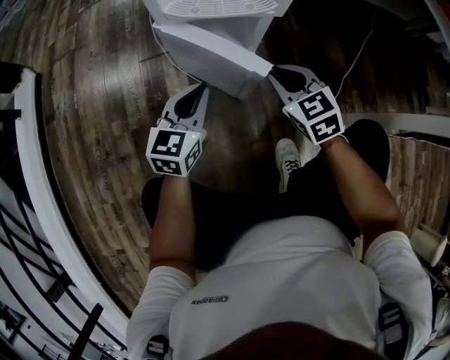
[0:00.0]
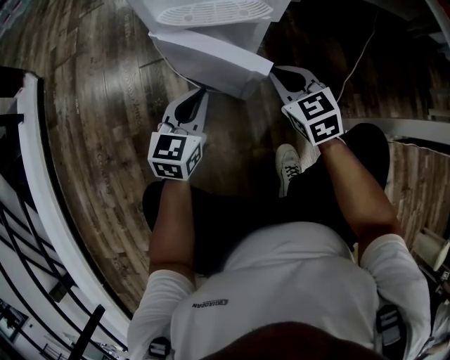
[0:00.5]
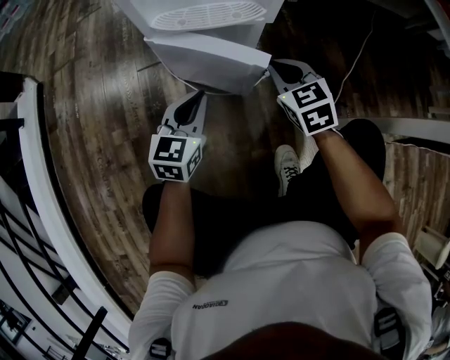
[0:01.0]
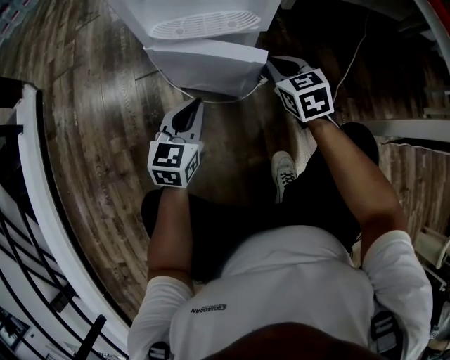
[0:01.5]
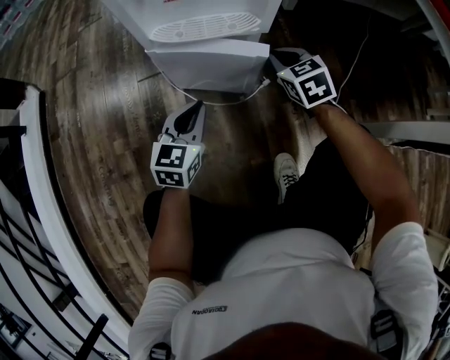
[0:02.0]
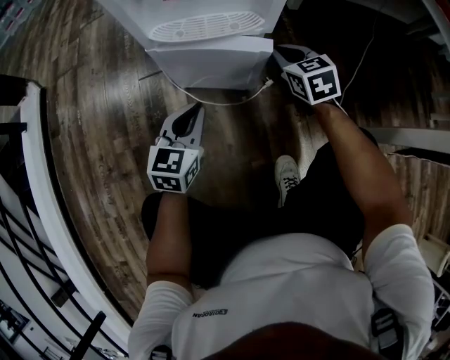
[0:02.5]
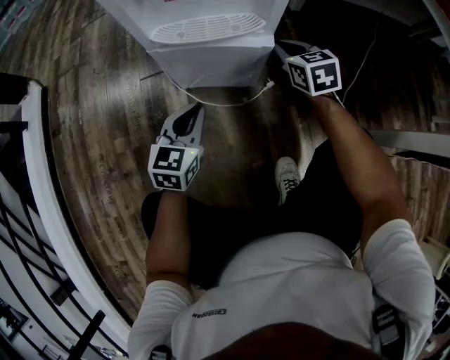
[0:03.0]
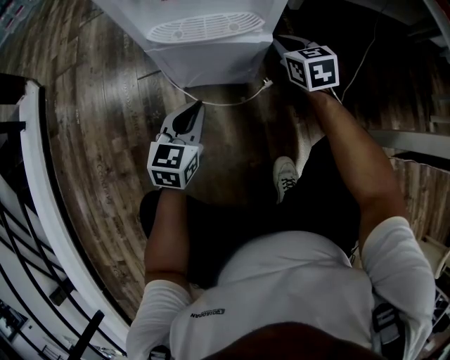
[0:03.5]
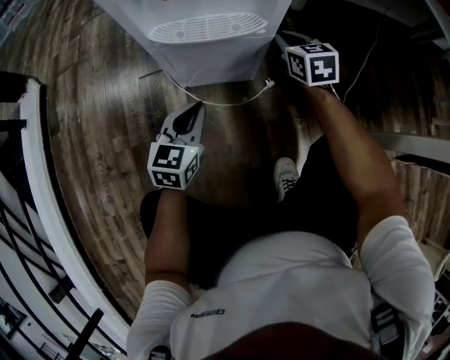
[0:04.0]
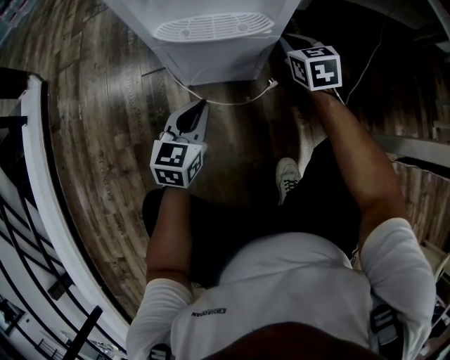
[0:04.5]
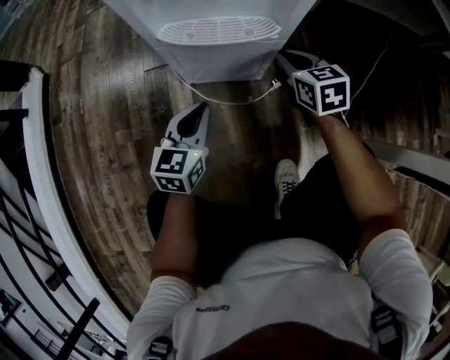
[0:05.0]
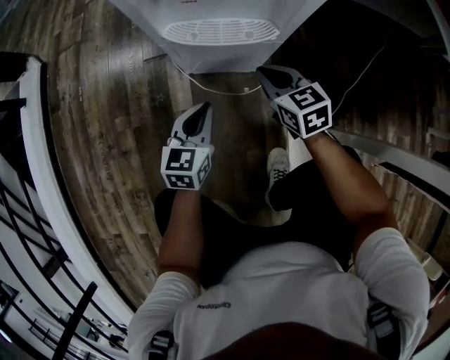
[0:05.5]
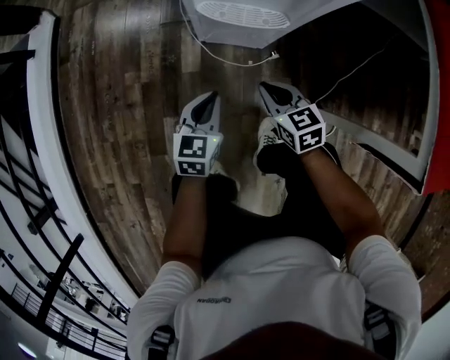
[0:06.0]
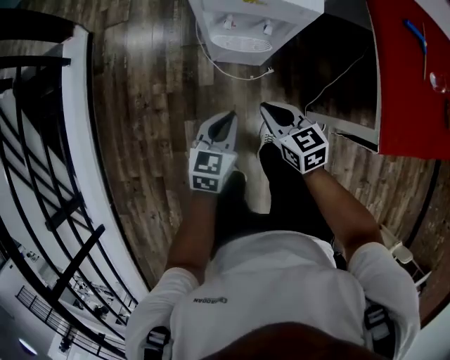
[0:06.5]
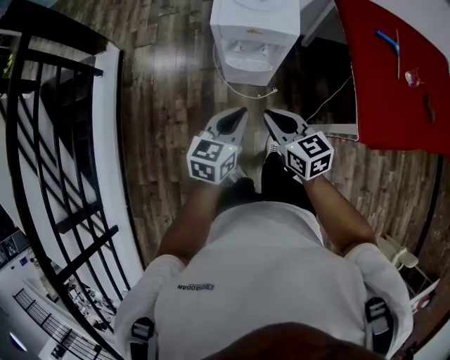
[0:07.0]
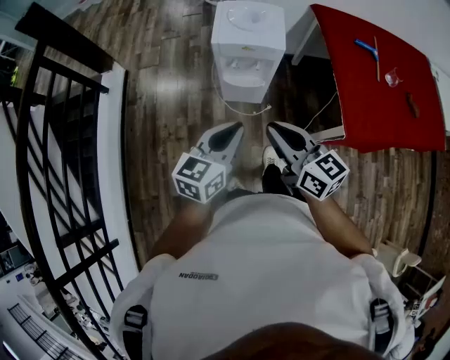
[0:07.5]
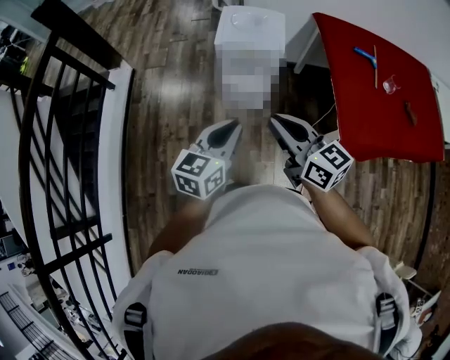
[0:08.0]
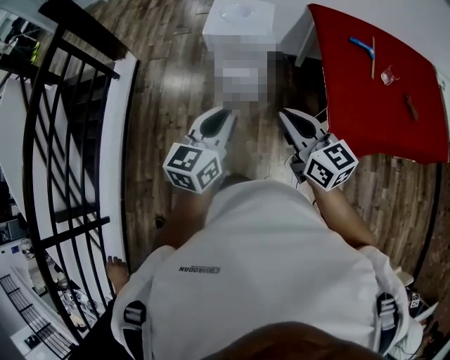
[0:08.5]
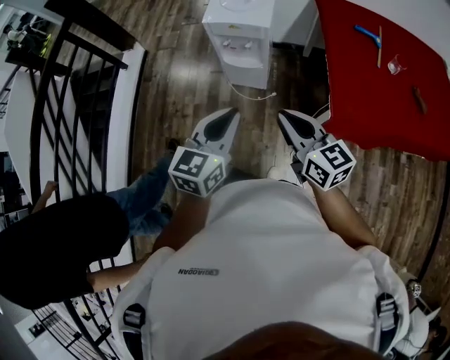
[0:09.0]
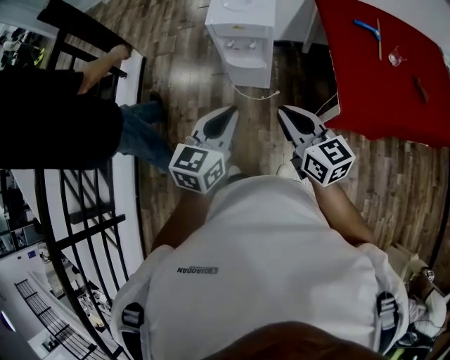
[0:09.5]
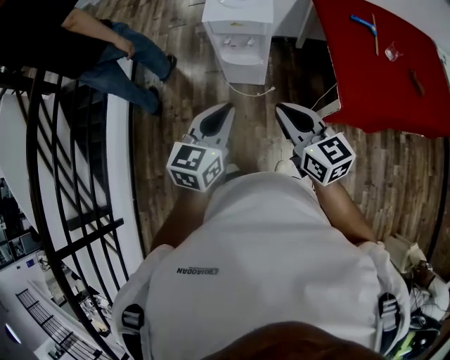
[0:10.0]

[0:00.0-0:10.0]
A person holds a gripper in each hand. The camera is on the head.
0:00.0 to 0:02.0: The right gripper moves forward, some 10 cm.
0:02.0 to 0:04.0: The right gripper shifts approximately 5 cm forward.
0:04.0 to 0:06.0: The left gripper is displaced upward and backward by roughly 15 cm. Meanwhile the right gripper shifts roughly 25 cm backward, to the left and upward, and turns by some 30 degrees.
0:06.0 to 0:08.0: The grippers both shift upward by approximately 60 cm. The right gripper points its fingers roughly 30 degrees further upward.
0:08.0 to 0:10.0: The right gripper goes roughly 10 cm backward and to the right. Meanwhile the left gripper heads backward, covering some 5 cm, and travels to the right and back again, approximately 10 cm each way.

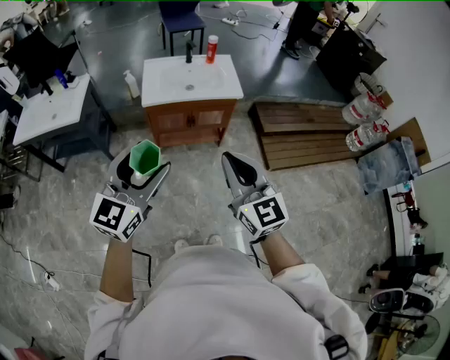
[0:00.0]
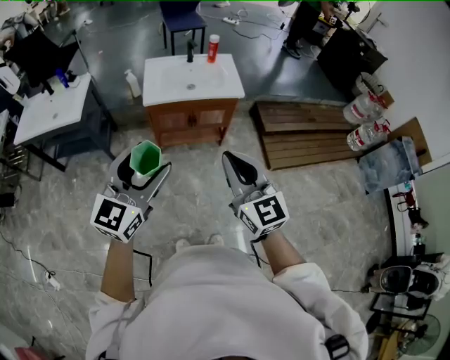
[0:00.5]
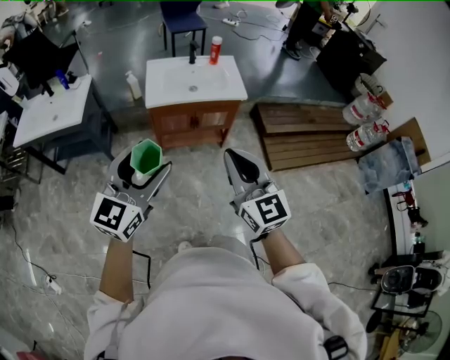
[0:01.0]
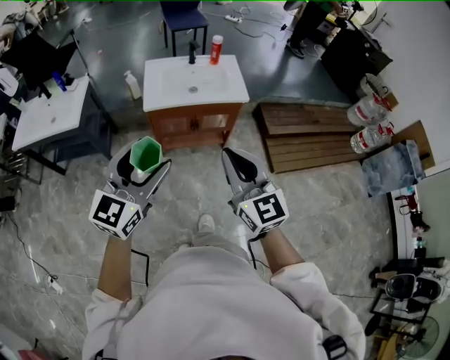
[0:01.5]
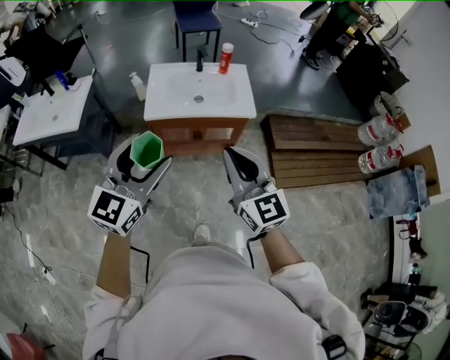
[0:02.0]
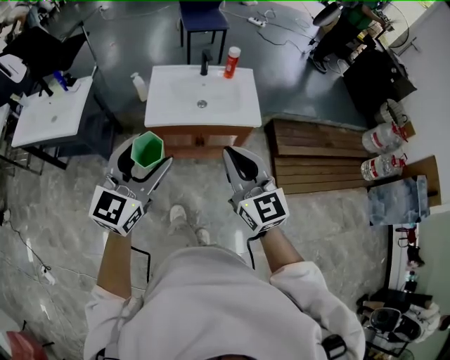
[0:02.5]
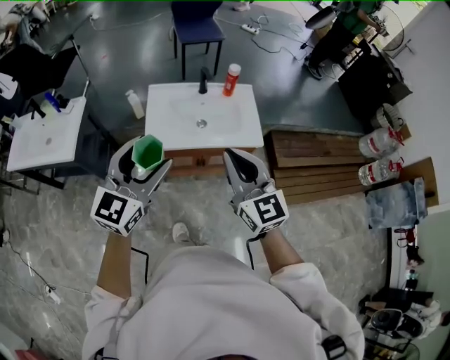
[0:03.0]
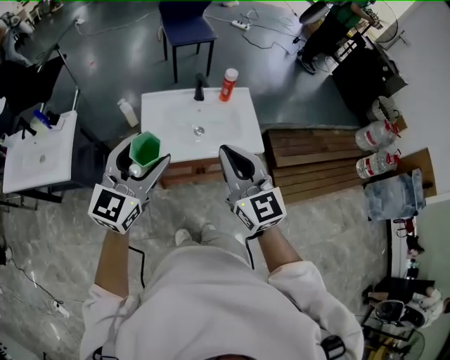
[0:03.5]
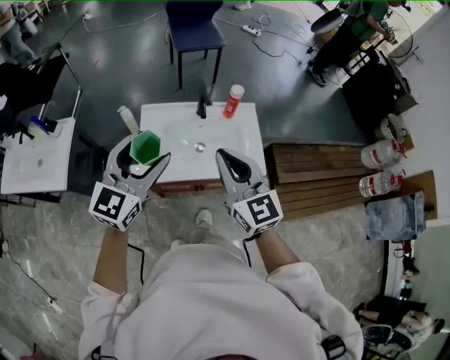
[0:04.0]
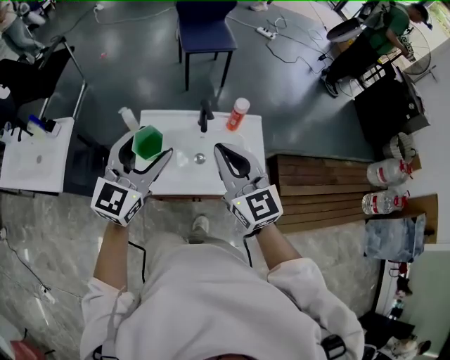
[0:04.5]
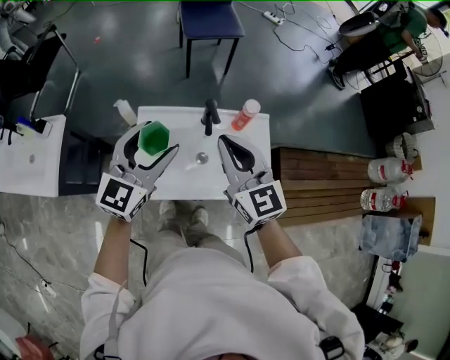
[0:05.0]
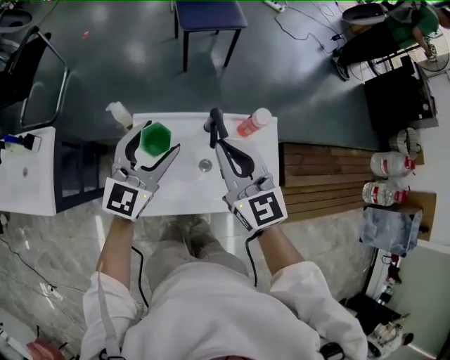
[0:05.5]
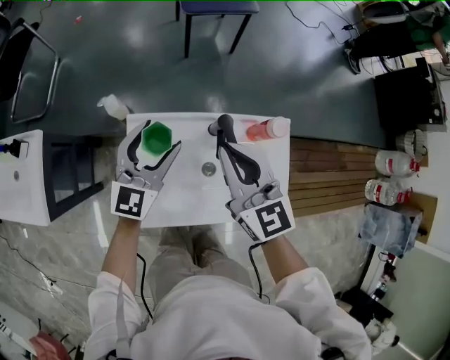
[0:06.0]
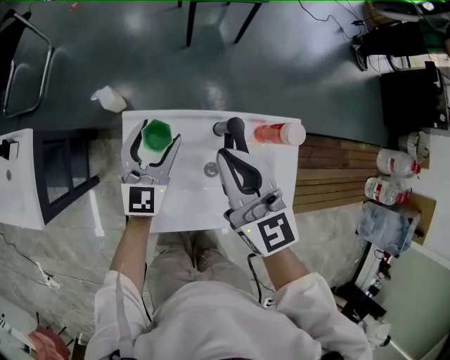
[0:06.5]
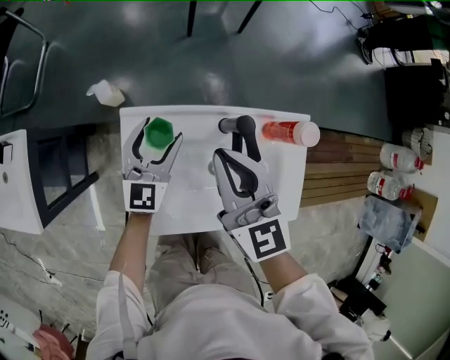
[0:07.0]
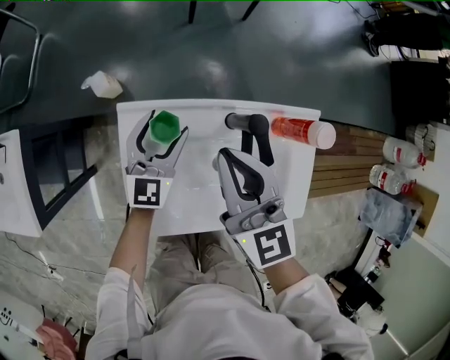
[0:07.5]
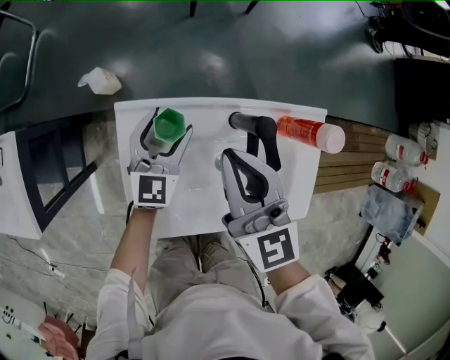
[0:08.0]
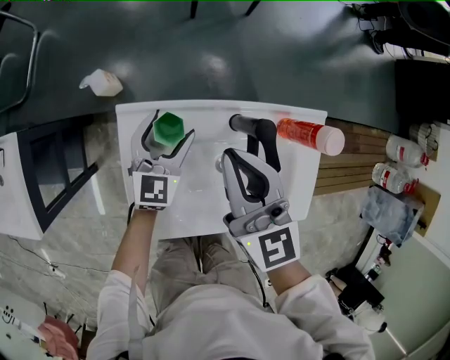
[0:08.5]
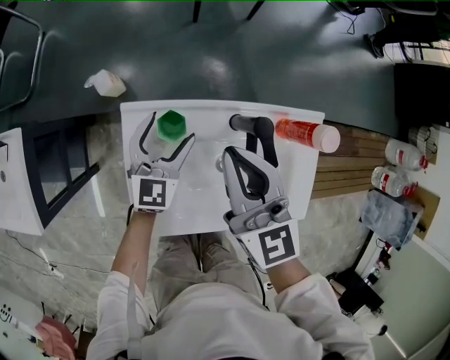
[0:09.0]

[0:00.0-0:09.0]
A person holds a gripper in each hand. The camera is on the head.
0:00.0 to 0:02.0: Both grippers travel together forward, roughly 20 cm.
0:02.0 to 0:04.5: The pair of grippers is taken forward, some 50 cm.
0:04.5 to 0:07.0: The right gripper heads forward and downward, covering about 30 cm; the left gripper travels downward and forward by approximately 40 cm.

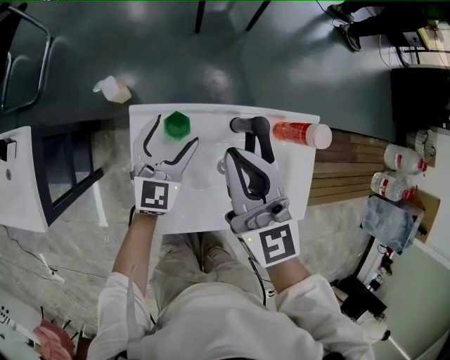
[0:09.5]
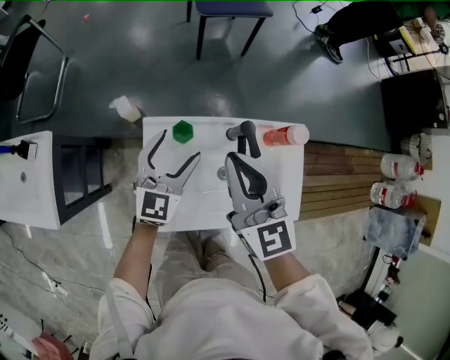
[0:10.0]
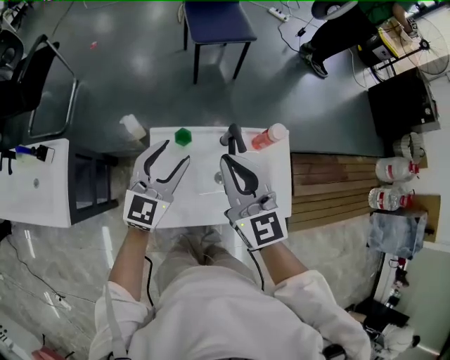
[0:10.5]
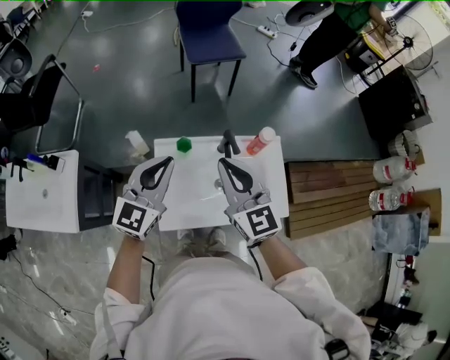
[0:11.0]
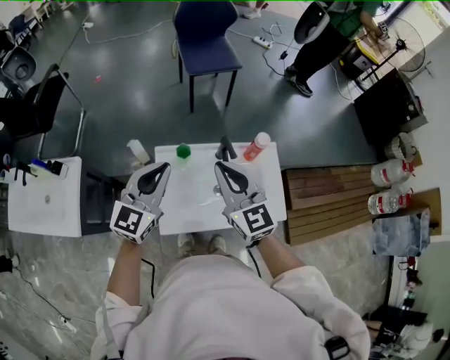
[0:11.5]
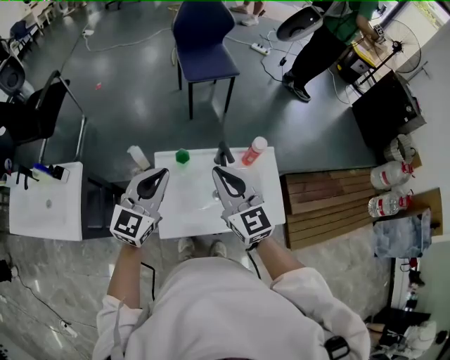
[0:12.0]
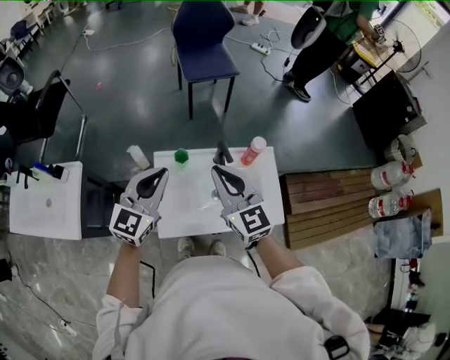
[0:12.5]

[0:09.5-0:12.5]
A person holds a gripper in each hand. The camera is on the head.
0:09.5 to 0:11.0: The right gripper goes about 20 cm upward and backward. Meanwhile the left gripper is displaced upward and backward by approximately 30 cm, and closes up.
0:11.0 to 0:12.5: There are only small adjustments of the grippers.

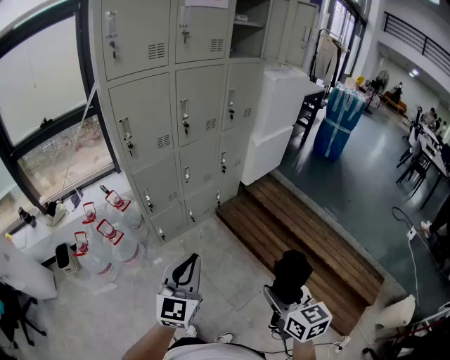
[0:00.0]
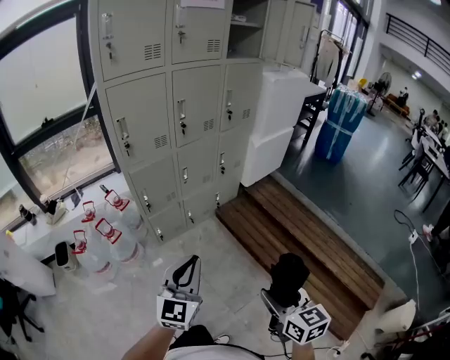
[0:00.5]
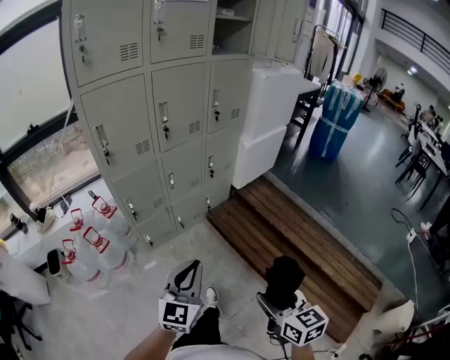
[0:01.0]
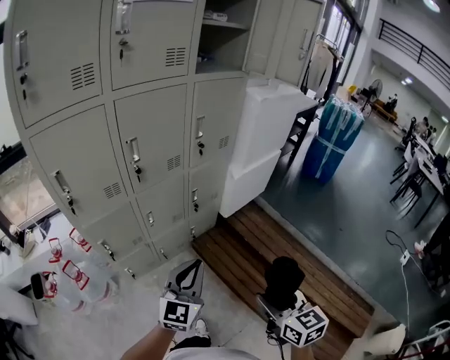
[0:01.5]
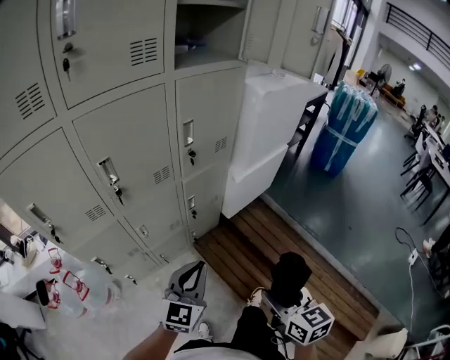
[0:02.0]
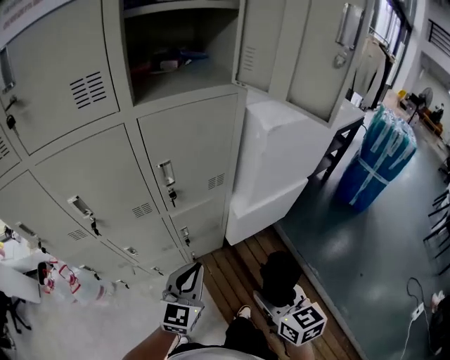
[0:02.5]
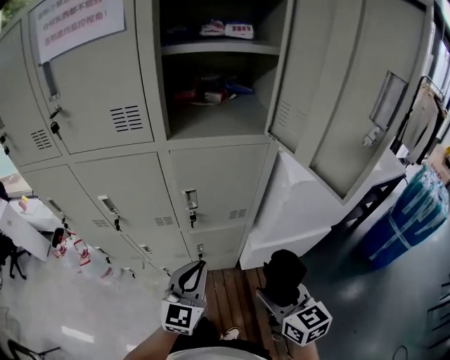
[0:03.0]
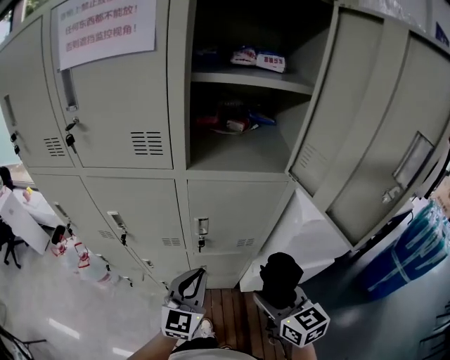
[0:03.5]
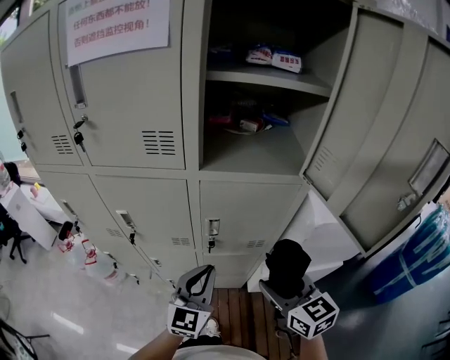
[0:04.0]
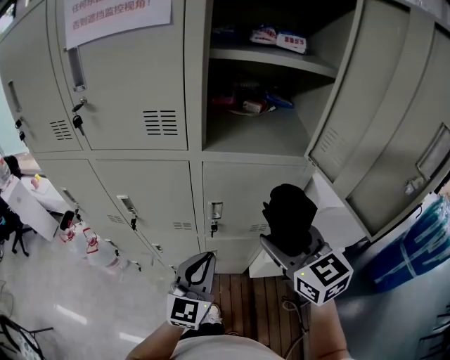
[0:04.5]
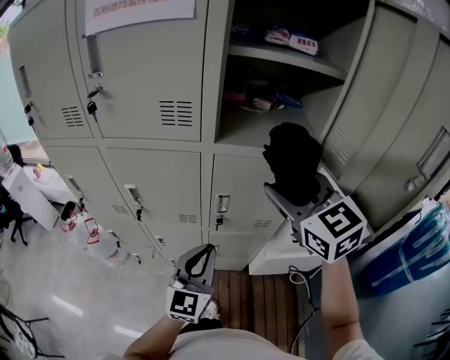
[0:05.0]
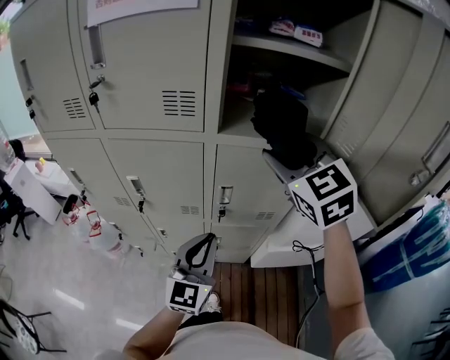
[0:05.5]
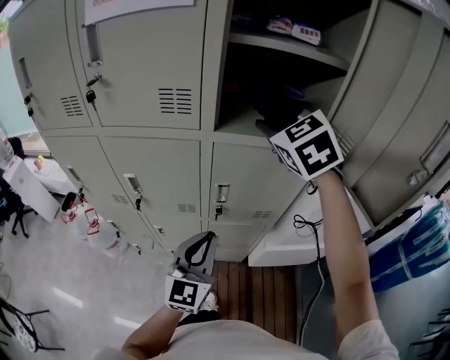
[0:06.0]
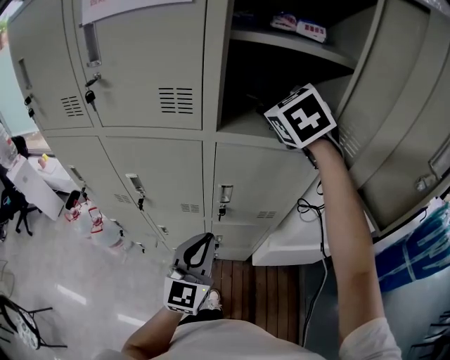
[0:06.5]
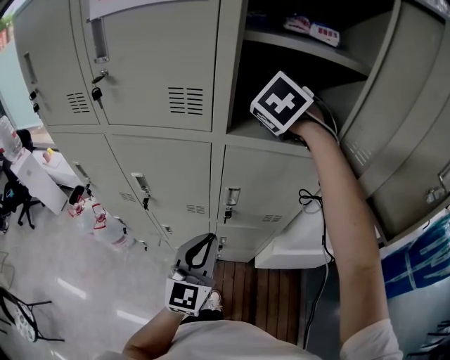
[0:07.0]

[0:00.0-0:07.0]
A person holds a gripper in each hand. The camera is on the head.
0:00.0 to 0:02.0: Both grippers are carried forward and to the right, approximately 40 cm.
0:02.0 to 0:03.5: The left gripper shifts by about 30 cm, and rotates roughly 40 degrees, while the right gripper moves roughly 40 cm, and rotates about 40 degrees.
0:03.5 to 0:05.0: The right gripper goes roughly 25 cm upward and forward, and swivels approximately 30 degrees.
0:05.0 to 0:07.0: The right gripper goes about 20 cm forward, and turns by roughly 40 degrees.
